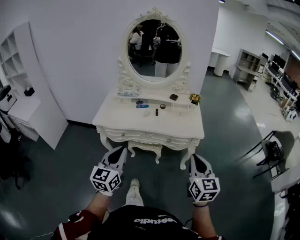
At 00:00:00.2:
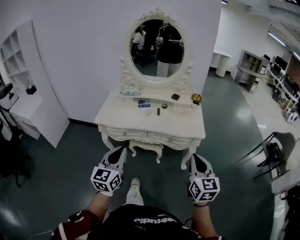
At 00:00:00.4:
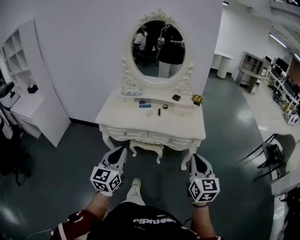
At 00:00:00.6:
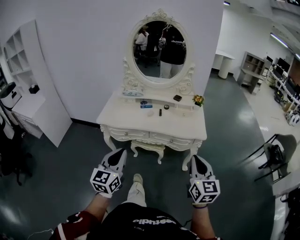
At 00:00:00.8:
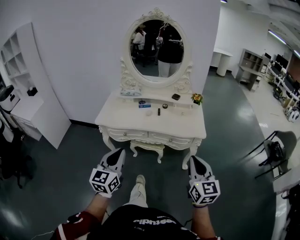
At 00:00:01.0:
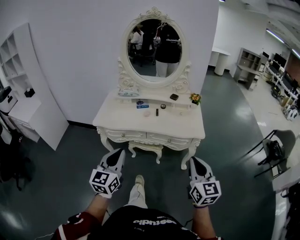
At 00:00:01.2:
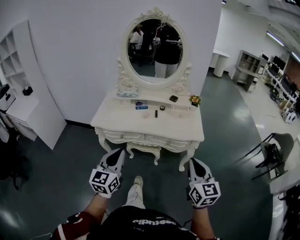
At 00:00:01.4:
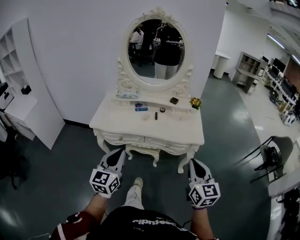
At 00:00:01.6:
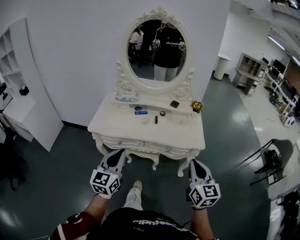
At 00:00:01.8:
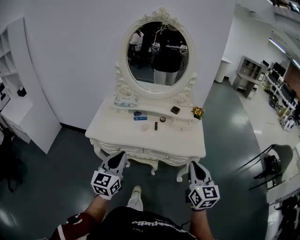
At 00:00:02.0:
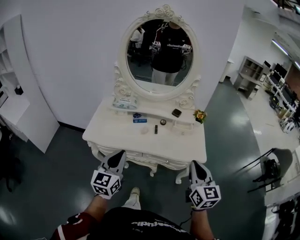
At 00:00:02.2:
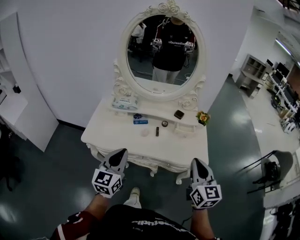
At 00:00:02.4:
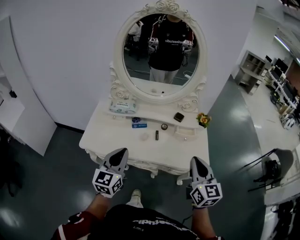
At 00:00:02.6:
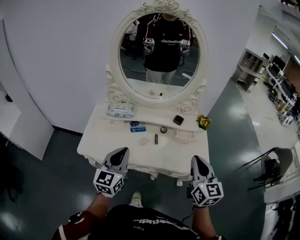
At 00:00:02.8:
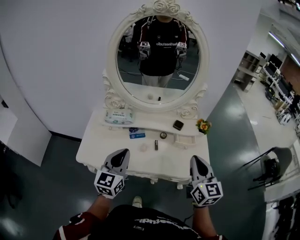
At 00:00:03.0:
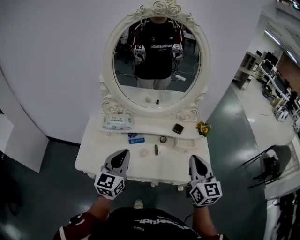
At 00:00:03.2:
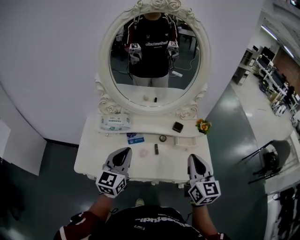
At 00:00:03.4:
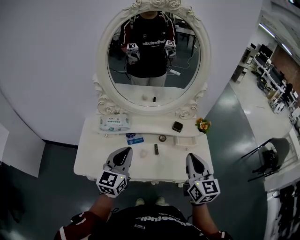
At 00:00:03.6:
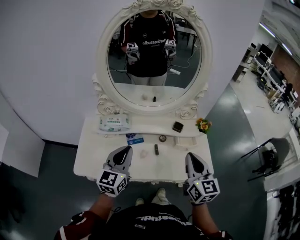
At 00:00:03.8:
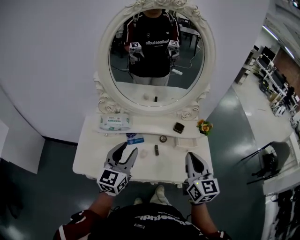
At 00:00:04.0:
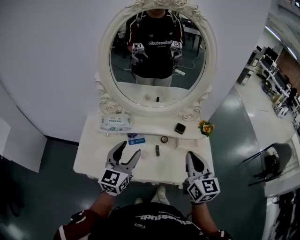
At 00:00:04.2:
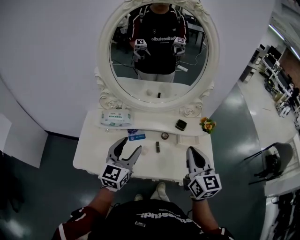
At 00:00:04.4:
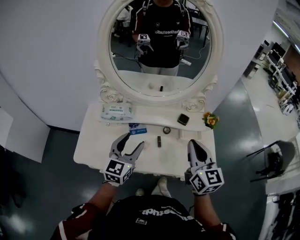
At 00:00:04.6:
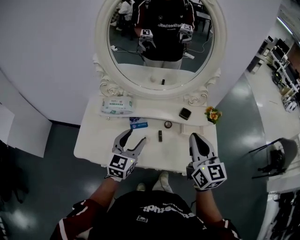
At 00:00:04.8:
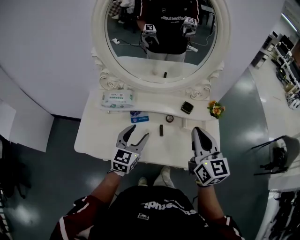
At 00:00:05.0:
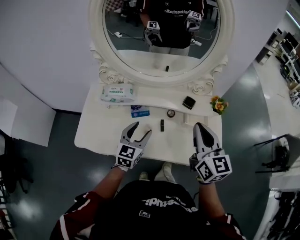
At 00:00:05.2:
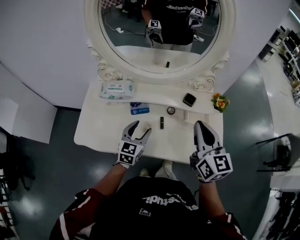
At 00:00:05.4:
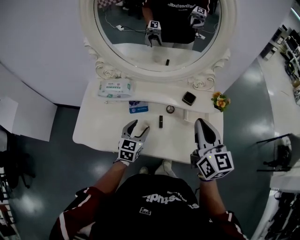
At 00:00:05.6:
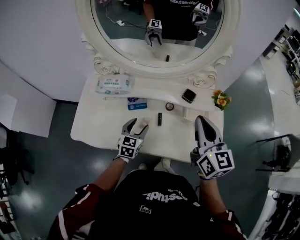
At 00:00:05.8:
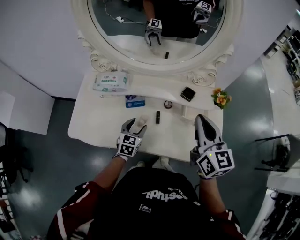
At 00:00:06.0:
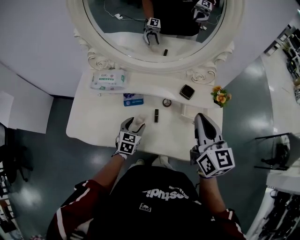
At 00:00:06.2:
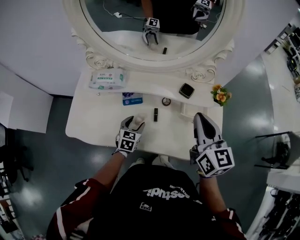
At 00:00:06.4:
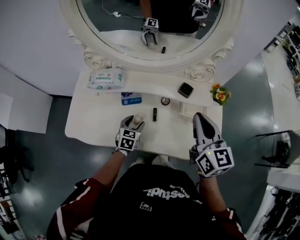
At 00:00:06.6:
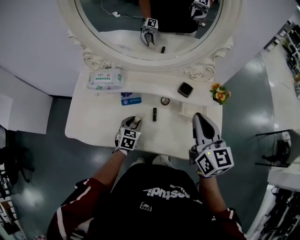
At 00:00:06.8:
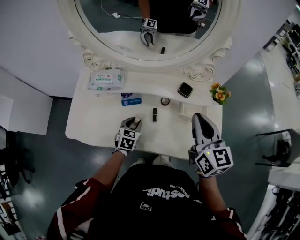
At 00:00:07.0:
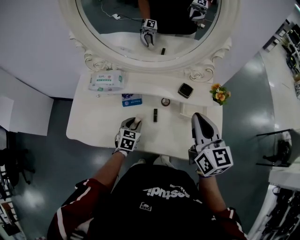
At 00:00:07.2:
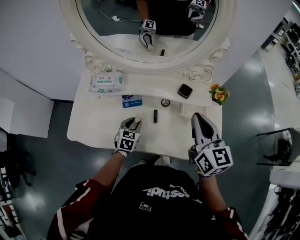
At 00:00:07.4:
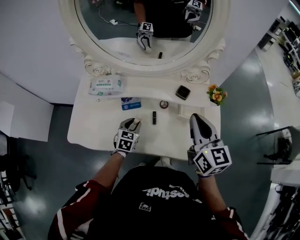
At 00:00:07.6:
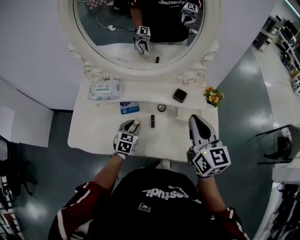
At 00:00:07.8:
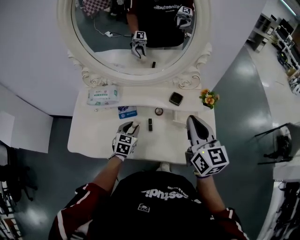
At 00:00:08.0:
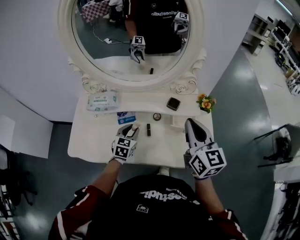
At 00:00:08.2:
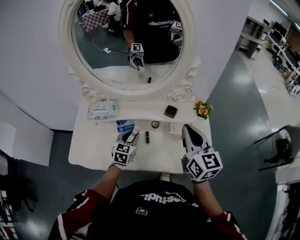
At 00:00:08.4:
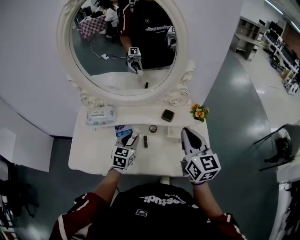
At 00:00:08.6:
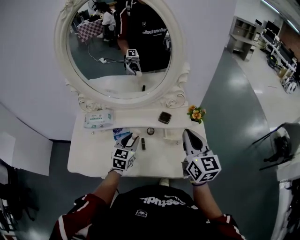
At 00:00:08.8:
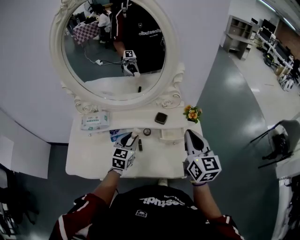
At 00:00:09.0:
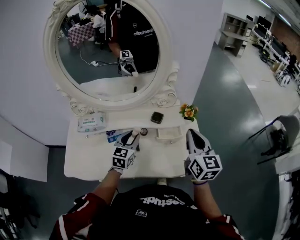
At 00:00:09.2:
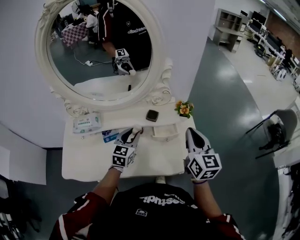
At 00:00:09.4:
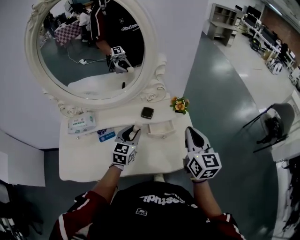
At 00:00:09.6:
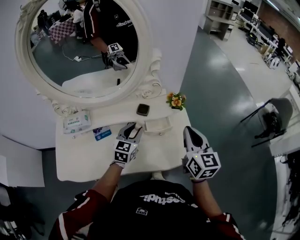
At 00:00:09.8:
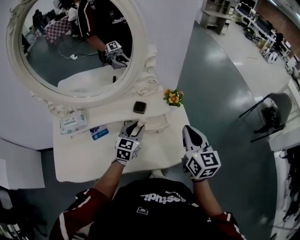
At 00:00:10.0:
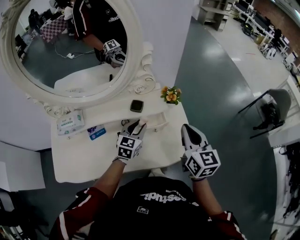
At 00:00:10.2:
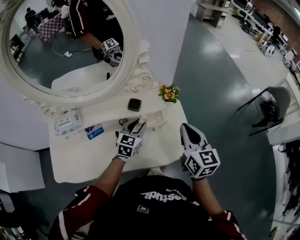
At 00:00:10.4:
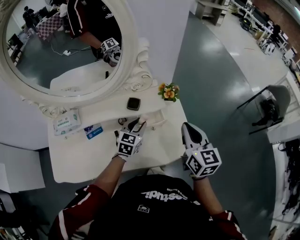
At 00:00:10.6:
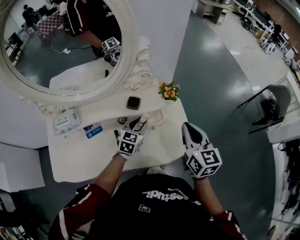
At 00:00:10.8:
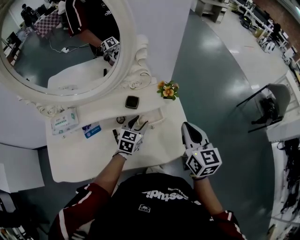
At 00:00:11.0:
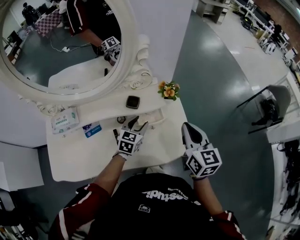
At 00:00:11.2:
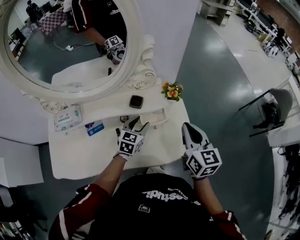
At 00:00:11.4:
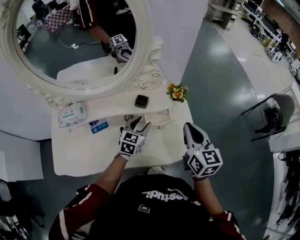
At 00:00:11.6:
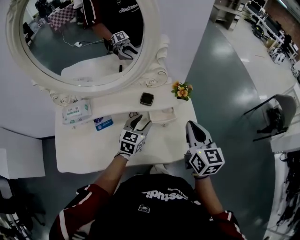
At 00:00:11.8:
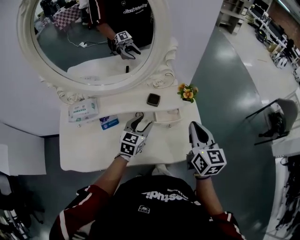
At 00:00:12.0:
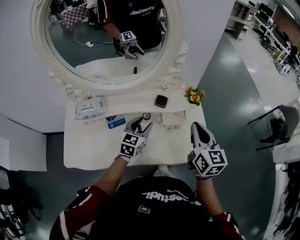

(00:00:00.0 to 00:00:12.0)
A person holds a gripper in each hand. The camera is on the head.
00:00:00.0 - 00:00:01.6: Both grippers travel together forward, some 5 cm.
00:00:01.6 - 00:00:03.0: The two grippers go roughly 30 cm forward.
00:00:03.0 - 00:00:04.4: Both grippers travel together forward, about 5 cm. The left gripper opens.
00:00:04.4 - 00:00:06.0: The left gripper shifts about 25 cm downward, and tilts its fingers about 30 degrees downward. Meanwhile the right gripper is displaced forward and to the right by approximately 10 cm.
00:00:06.0 - 00:00:07.6: The left gripper closes up.
00:00:07.6 - 00:00:09.0: The left gripper shifts roughly 15 cm upward and to the right; the right gripper moves to the right, roughly 10 cm.
00:00:09.0 - 00:00:10.4: The right gripper heads to the right, covering roughly 5 cm. Meanwhile the left gripper is displaced to the right, downward and forward by roughly 15 cm.
00:00:10.4 - 00:00:12.0: The right gripper goes approximately 10 cm to the left; the left gripper is displaced to the left and backward by about 10 cm.

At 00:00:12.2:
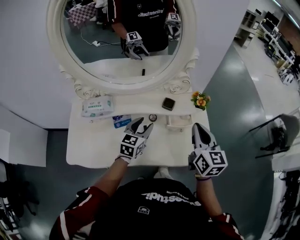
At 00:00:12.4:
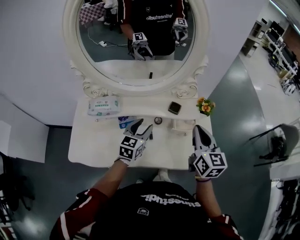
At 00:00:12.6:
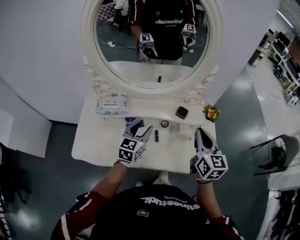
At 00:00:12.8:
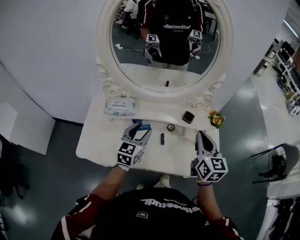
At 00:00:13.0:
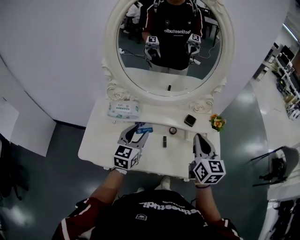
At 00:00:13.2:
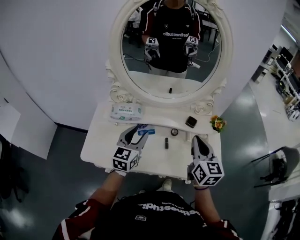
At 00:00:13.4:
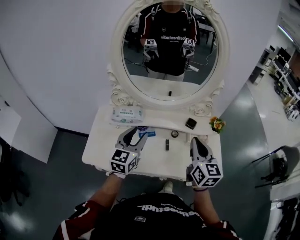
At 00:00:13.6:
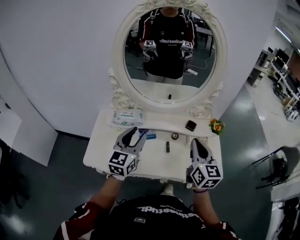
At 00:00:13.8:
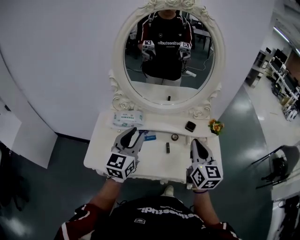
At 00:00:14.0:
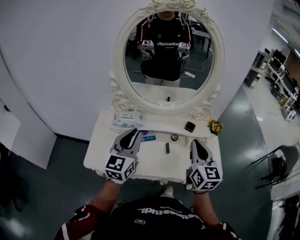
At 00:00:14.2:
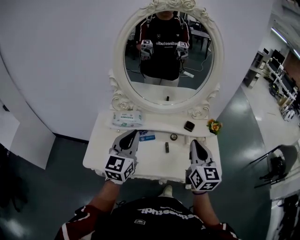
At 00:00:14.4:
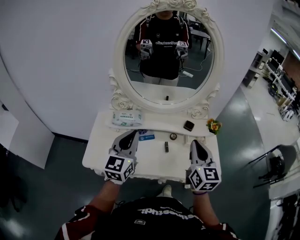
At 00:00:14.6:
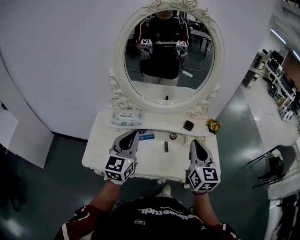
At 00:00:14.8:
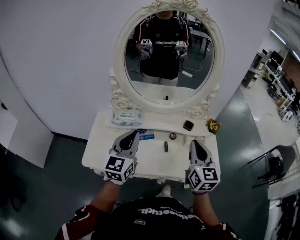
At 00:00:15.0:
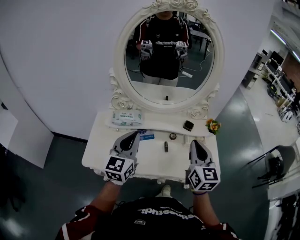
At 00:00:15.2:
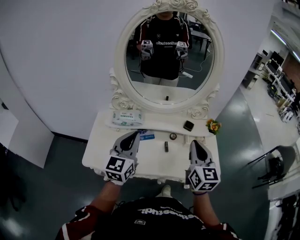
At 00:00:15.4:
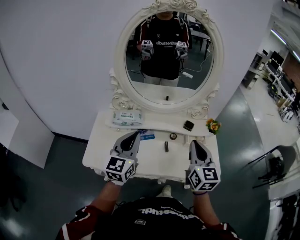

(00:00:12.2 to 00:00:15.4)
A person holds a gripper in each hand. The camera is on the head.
00:00:12.2 - 00:00:13.8: The right gripper shifts roughly 15 cm to the left, upward and backward. The left gripper moves upward, to the left and backward, approximately 30 cm, and changes its angle by roughly 30 degrees.
00:00:13.8 - 00:00:15.4: The left gripper closes.

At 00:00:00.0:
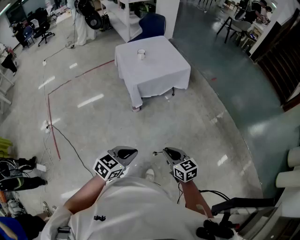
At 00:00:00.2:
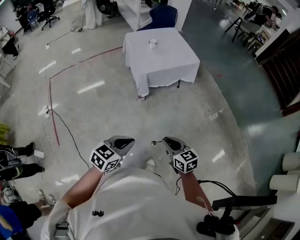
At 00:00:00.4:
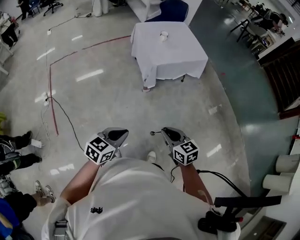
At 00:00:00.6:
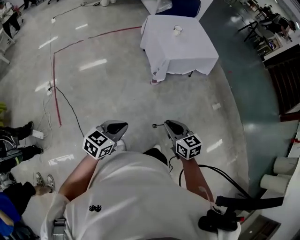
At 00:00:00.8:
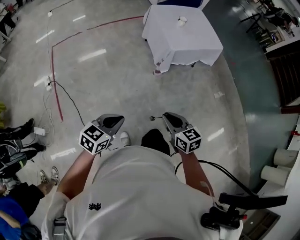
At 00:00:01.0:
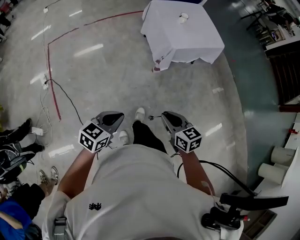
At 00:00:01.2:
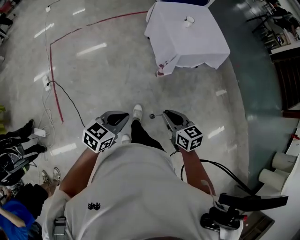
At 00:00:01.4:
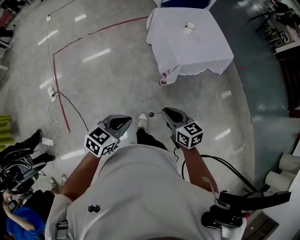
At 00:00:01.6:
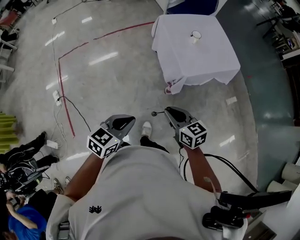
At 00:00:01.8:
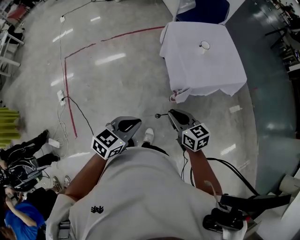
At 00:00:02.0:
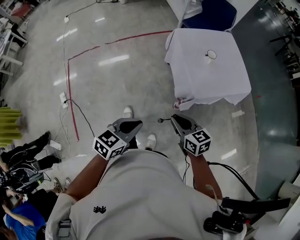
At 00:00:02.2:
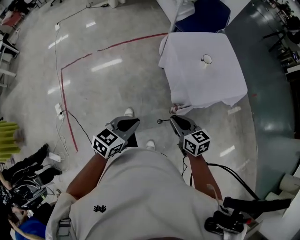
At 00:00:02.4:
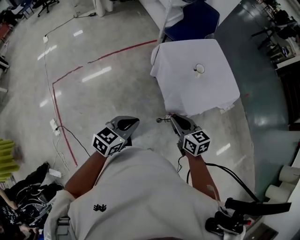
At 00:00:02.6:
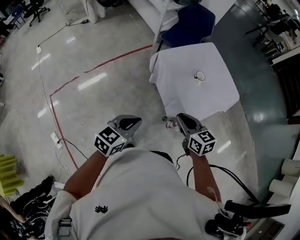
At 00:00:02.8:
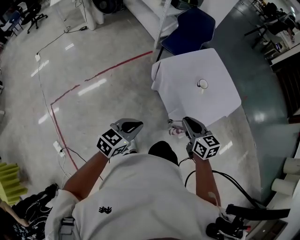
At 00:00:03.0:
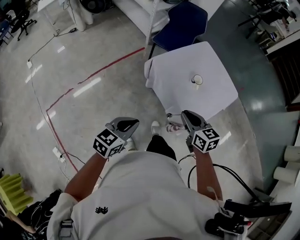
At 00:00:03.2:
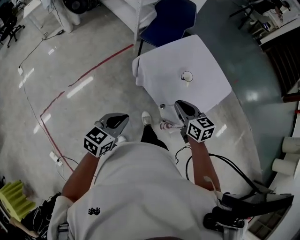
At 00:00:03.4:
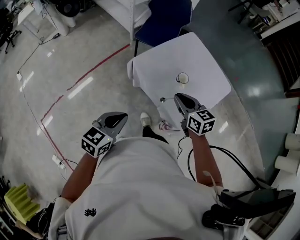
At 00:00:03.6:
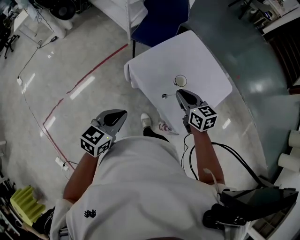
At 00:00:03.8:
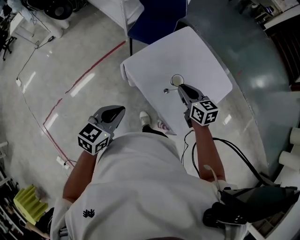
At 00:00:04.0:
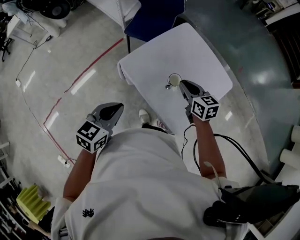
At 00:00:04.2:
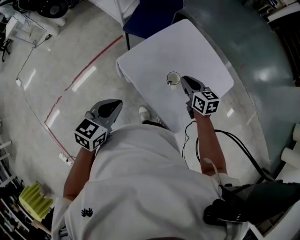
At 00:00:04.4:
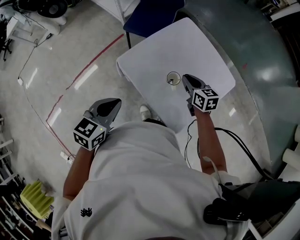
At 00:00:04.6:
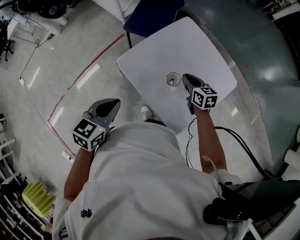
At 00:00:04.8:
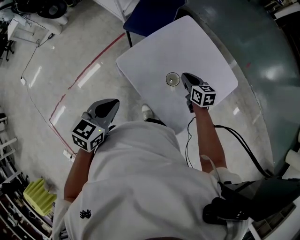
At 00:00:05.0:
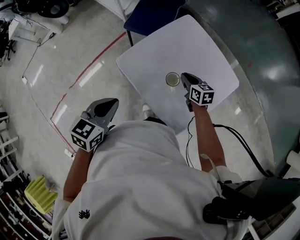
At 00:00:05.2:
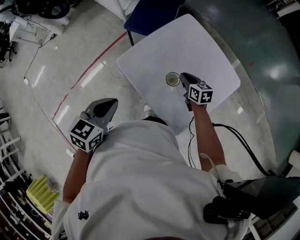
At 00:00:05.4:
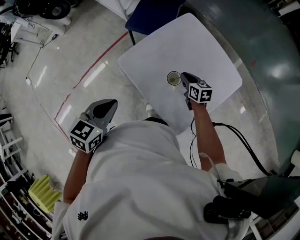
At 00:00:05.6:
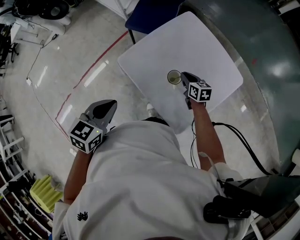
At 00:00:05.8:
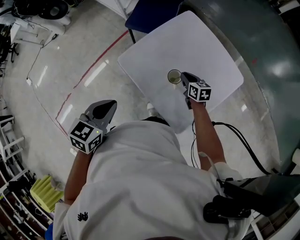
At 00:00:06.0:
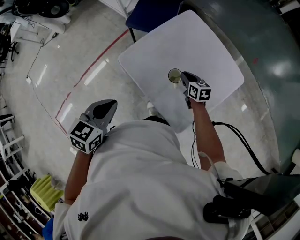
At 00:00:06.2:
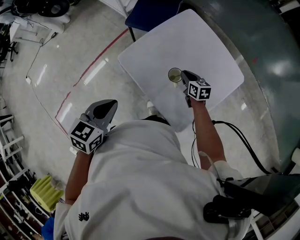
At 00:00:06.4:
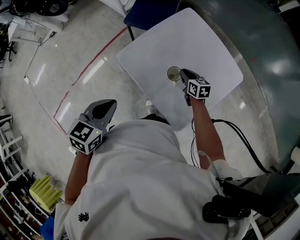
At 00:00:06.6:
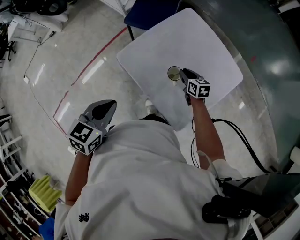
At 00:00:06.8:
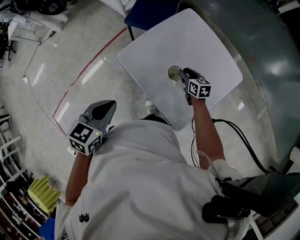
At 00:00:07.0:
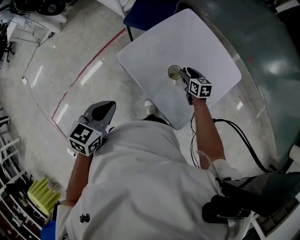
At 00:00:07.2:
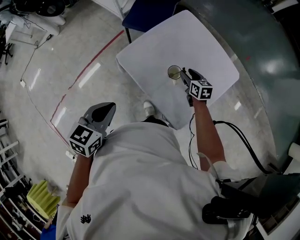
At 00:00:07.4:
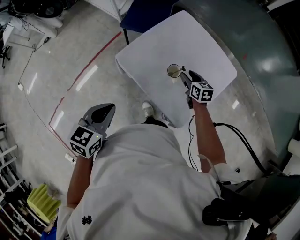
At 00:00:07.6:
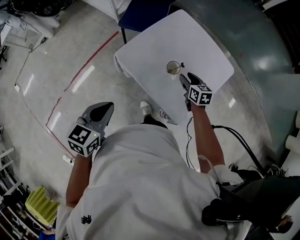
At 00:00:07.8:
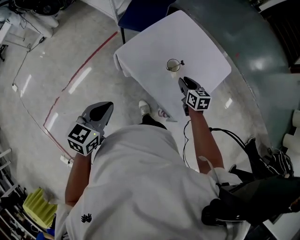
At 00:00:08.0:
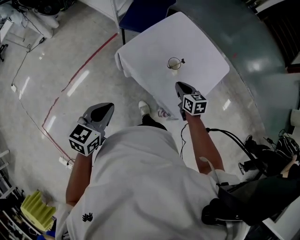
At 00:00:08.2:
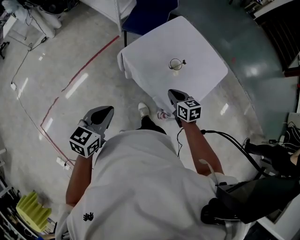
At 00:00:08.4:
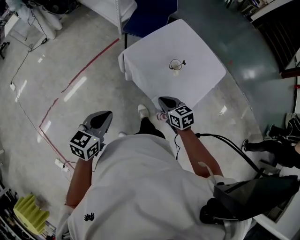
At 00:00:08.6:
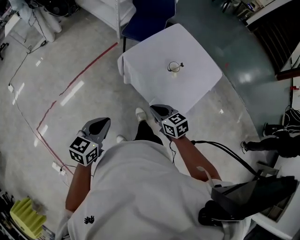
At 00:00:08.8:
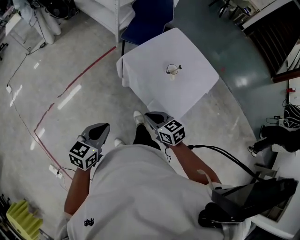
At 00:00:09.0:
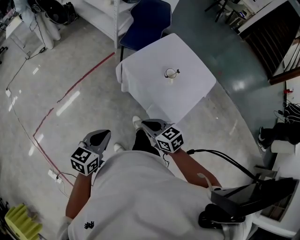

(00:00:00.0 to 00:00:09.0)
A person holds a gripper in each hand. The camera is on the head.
00:00:00.0 - 00:00:01.6: The pair of grippers is taken to the left and forward, approximately 50 cm.
00:00:01.6 - 00:00:03.0: Both grippers are carried forward, about 40 cm. The right gripper rotates about 20 degrees.
00:00:03.0 - 00:00:04.4: The two grippers go some 35 cm forward and to the right.
00:00:04.4 - 00:00:06.0: The right gripper shifts roughly 10 cm downward.
00:00:06.0 - 00:00:07.6: The right gripper goes approximately 10 cm backward and upward, and opens its fingers. The left gripper travels backward and to the left by approximately 10 cm.
00:00:07.6 - 00:00:09.0: The right gripper shifts approximately 40 cm backward and to the left, changes its angle by approximately 30 degrees, and closes, while the left gripper is displaced backward and to the left by some 25 cm.
